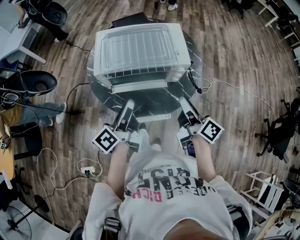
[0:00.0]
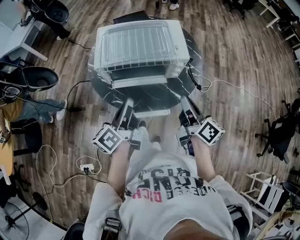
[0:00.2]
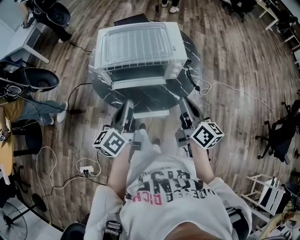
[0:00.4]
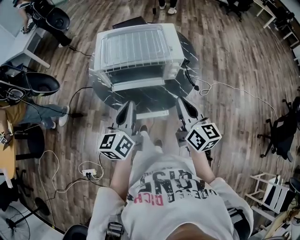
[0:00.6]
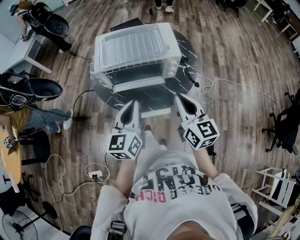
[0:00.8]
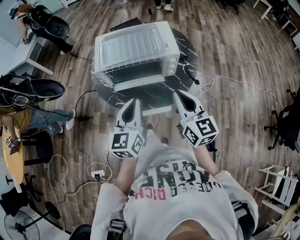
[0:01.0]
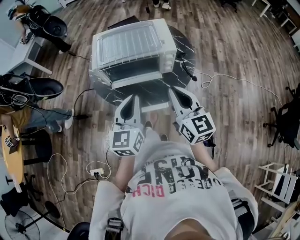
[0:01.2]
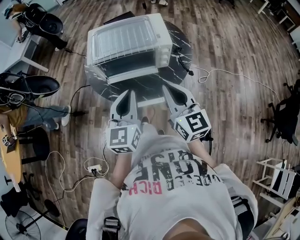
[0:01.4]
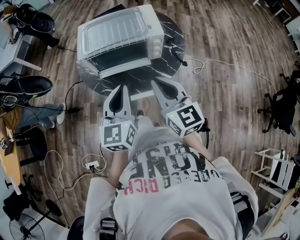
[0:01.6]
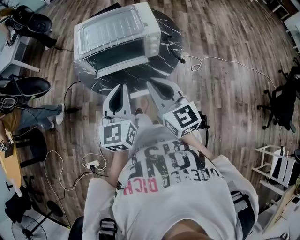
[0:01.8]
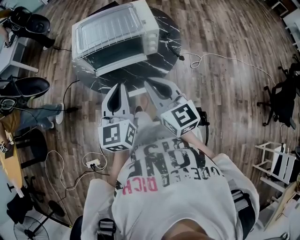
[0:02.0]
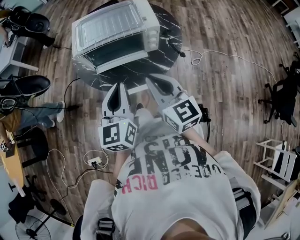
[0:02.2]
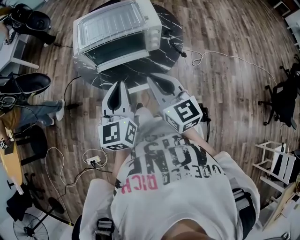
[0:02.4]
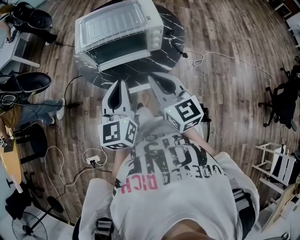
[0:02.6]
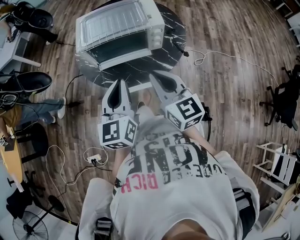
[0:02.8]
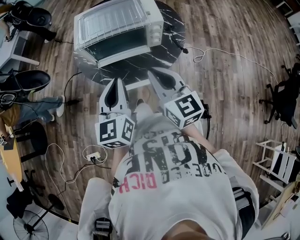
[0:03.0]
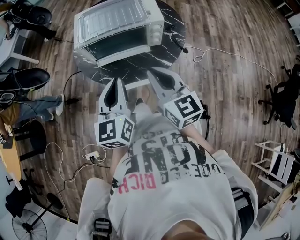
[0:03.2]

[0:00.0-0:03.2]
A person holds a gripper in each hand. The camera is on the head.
0:00.0 to 0:01.6: The right gripper travels backward and upward by approximately 10 cm, rotates around the line of its fingers by roughly 50 degrees, counterclockwise from behind, and closes up. The left gripper moves backward, upward and to the right, some 10 cm, rolls clockwise, seen from behind, by roughly 60 degrees, and closes its fingers.
0:01.6 to 0:03.2: The grippers stay close to where they were, moving slightly.

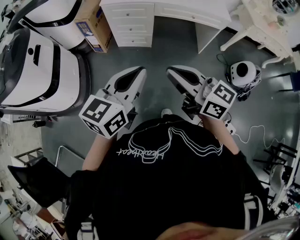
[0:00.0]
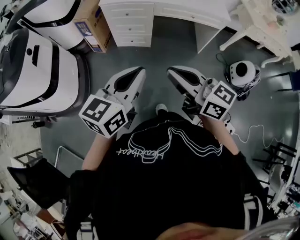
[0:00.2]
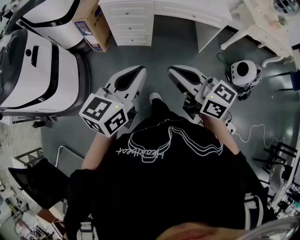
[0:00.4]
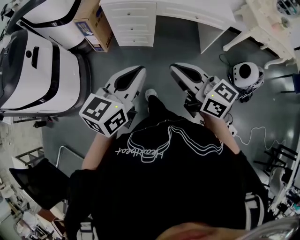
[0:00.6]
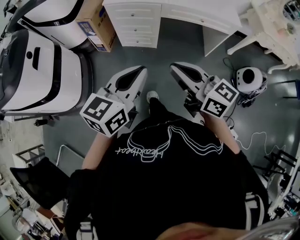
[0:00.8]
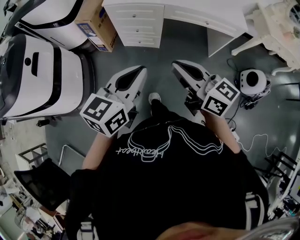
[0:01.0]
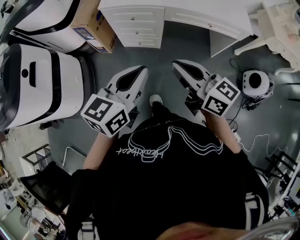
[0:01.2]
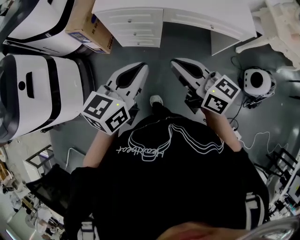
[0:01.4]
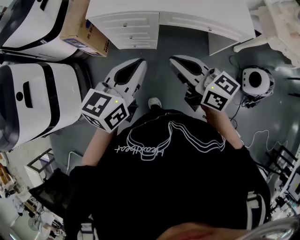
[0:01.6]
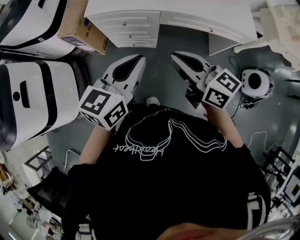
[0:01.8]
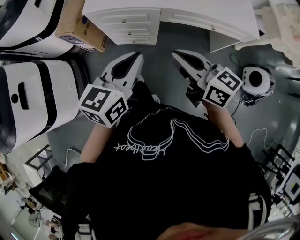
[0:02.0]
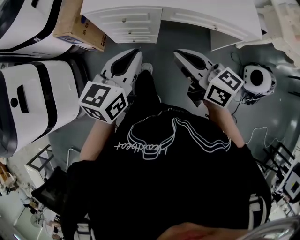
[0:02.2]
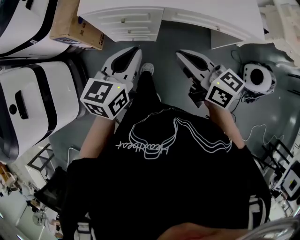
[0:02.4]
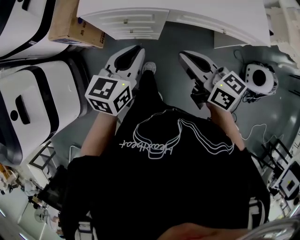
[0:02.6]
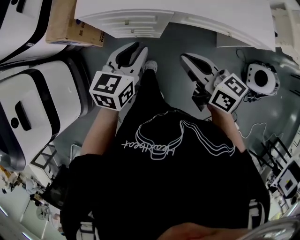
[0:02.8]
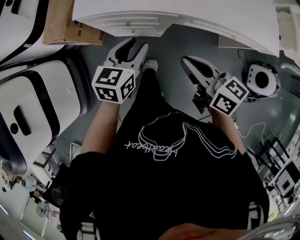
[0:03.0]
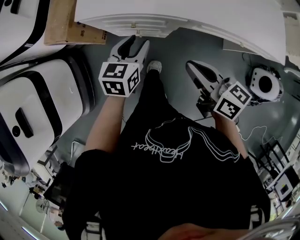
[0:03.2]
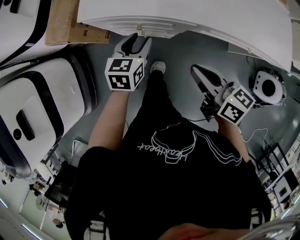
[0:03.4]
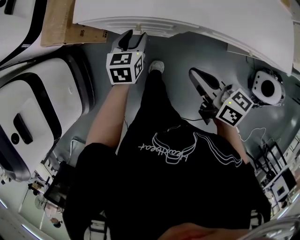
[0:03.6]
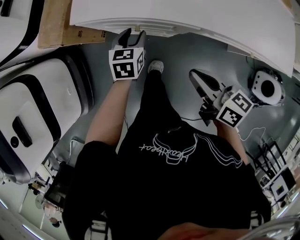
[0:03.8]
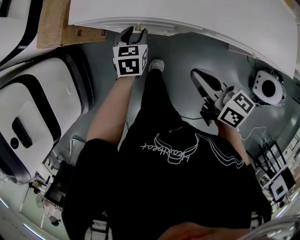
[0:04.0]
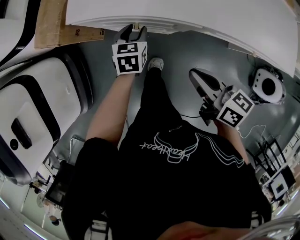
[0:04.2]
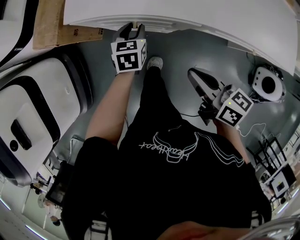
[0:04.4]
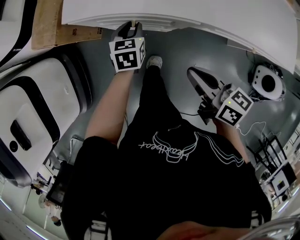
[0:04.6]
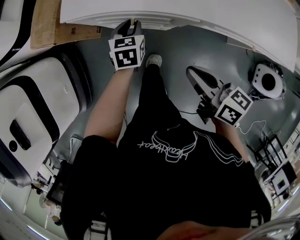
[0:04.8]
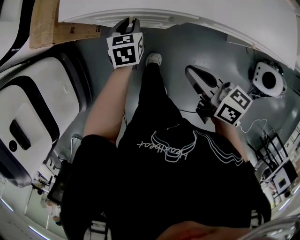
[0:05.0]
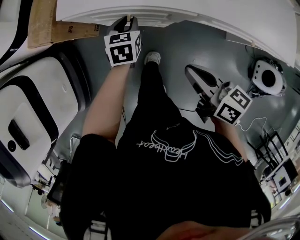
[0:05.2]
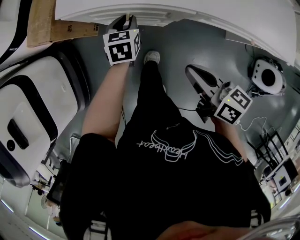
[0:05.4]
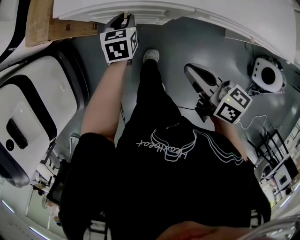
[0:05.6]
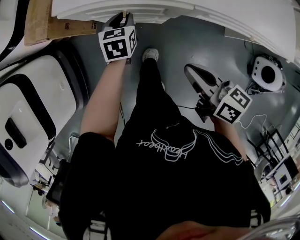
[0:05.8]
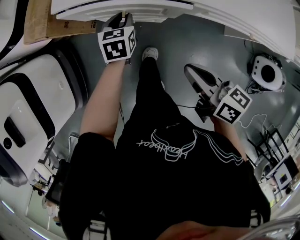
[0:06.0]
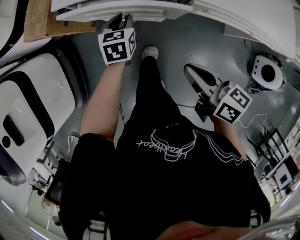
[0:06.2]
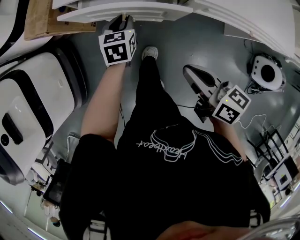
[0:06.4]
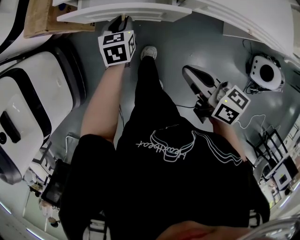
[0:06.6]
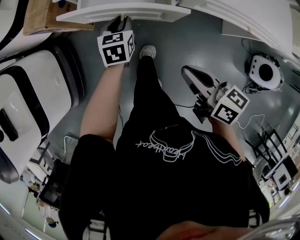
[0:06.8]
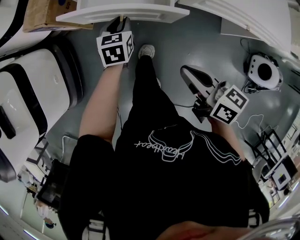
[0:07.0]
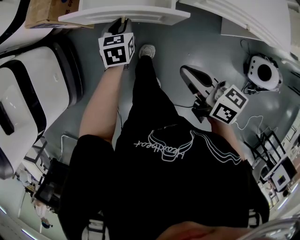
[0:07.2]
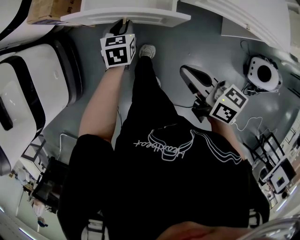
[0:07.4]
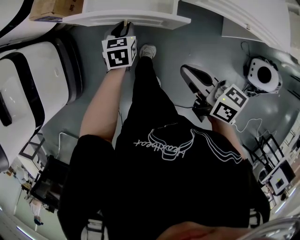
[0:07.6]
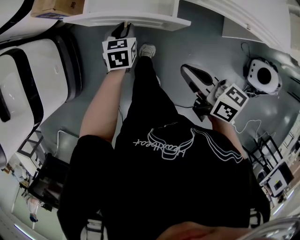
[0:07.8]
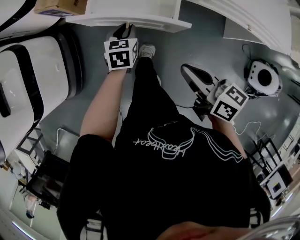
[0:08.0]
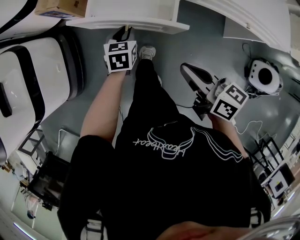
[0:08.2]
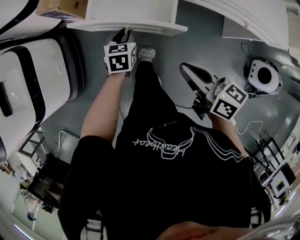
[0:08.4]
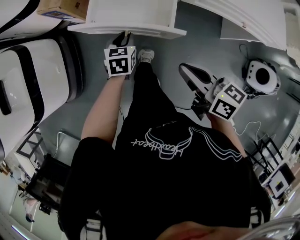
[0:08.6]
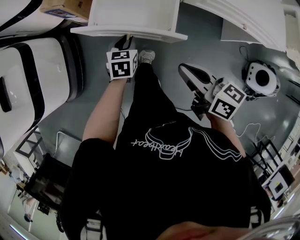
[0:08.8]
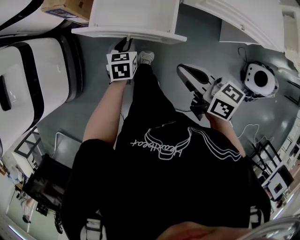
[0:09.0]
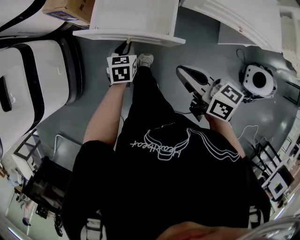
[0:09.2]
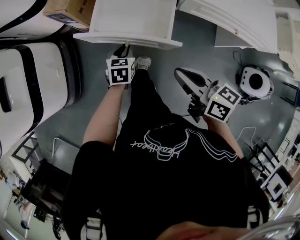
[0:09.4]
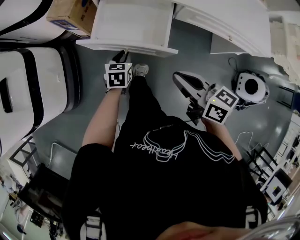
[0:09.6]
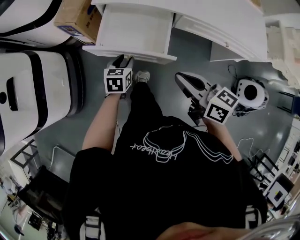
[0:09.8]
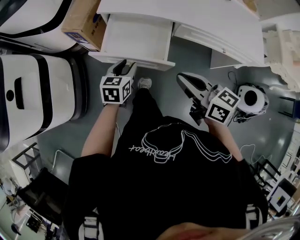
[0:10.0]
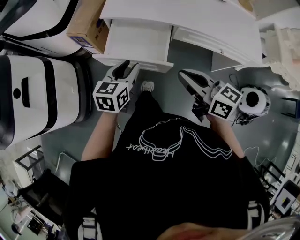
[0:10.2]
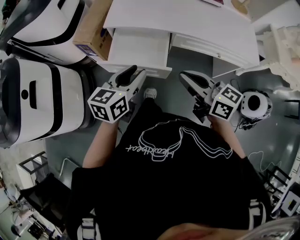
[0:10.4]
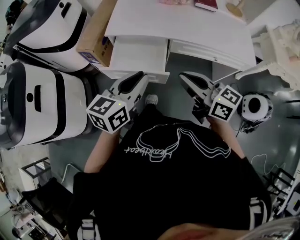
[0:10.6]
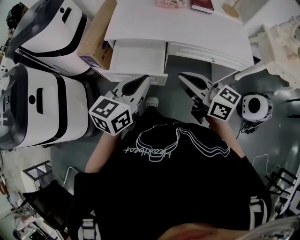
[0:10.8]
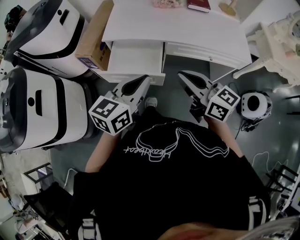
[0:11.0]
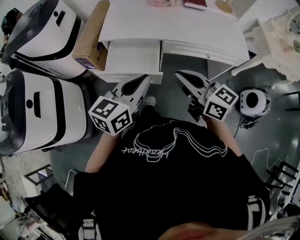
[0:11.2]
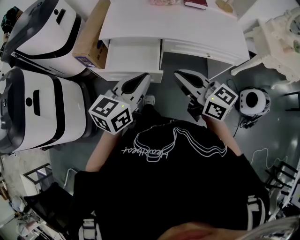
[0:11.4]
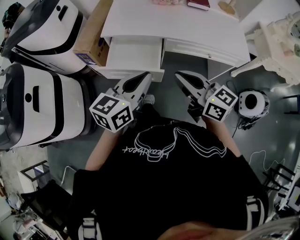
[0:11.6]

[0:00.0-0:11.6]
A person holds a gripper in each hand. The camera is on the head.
0:00.0 to 0:01.4: Both grippers move forward, about 25 cm.
0:01.4 to 0:02.8: The grippers both shift forward and downward by roughly 25 cm.
0:02.8 to 0:04.4: The right gripper moves downward, approximately 10 cm; the left gripper travels downward and forward by approximately 25 cm, and turns by roughly 30 degrees.
0:04.4 to 0:05.8: There are only small adjustments of the grippers.
0:05.8 to 0:07.2: Both grippers travel together backward, about 5 cm.
0:07.2 to 0:08.8: The left gripper is displaced backward by some 10 cm. Meanwhile the right gripper moves approximately 5 cm.
0:08.8 to 0:10.2: The left gripper goes about 20 cm upward, and changes its angle by roughly 20 degrees; the right gripper moves upward, approximately 15 cm.
0:10.2 to 0:11.6: The right gripper goes some 5 cm upward. Meanwhile the left gripper moves upward, backward and to the right, some 20 cm, swivels about 20 degrees, and closes its fingers.

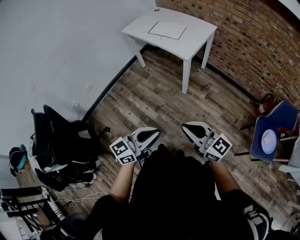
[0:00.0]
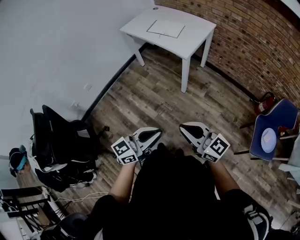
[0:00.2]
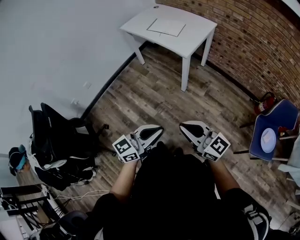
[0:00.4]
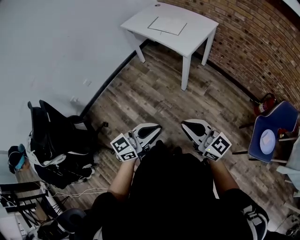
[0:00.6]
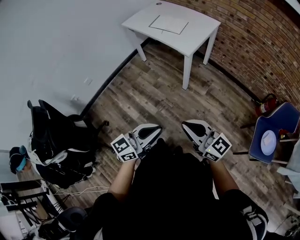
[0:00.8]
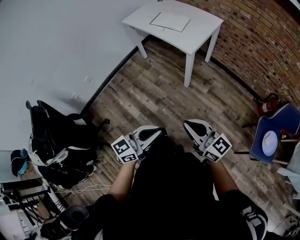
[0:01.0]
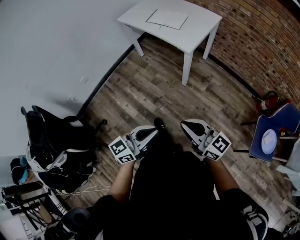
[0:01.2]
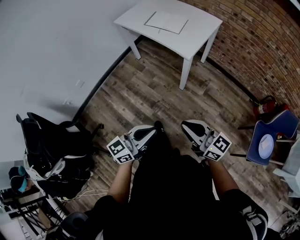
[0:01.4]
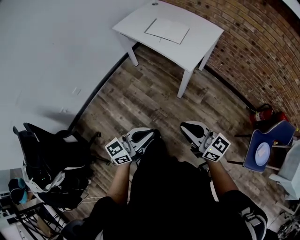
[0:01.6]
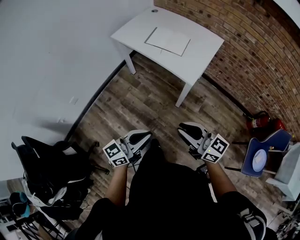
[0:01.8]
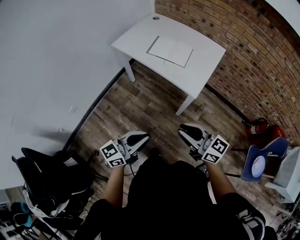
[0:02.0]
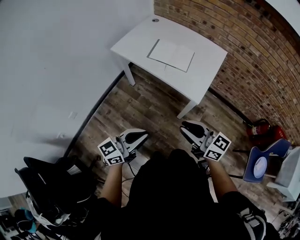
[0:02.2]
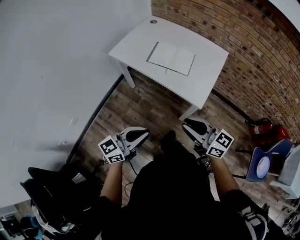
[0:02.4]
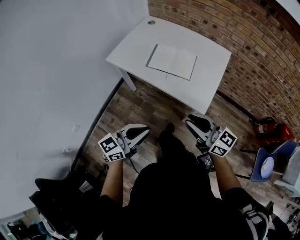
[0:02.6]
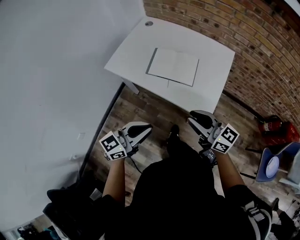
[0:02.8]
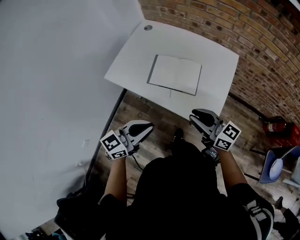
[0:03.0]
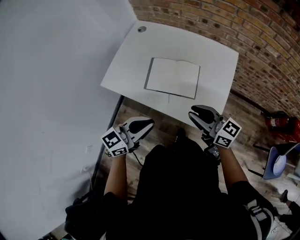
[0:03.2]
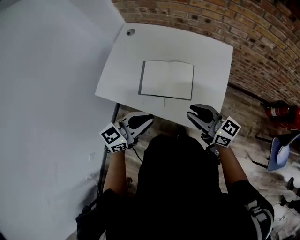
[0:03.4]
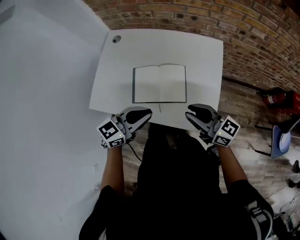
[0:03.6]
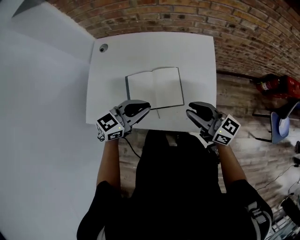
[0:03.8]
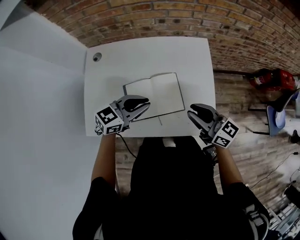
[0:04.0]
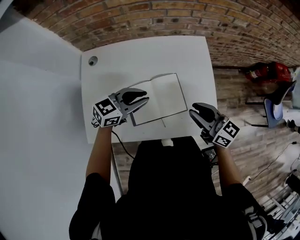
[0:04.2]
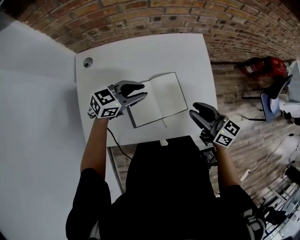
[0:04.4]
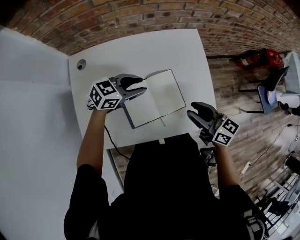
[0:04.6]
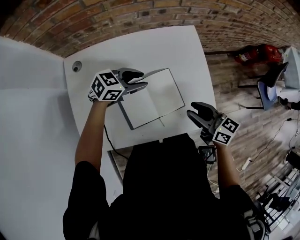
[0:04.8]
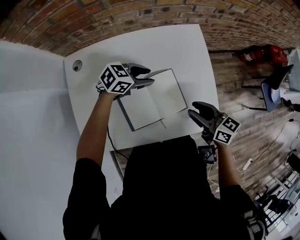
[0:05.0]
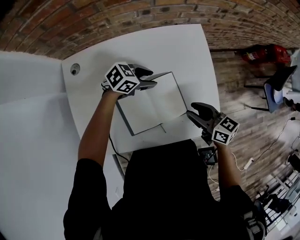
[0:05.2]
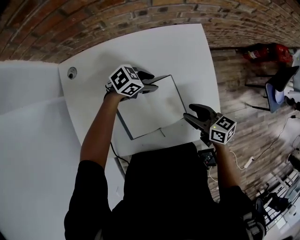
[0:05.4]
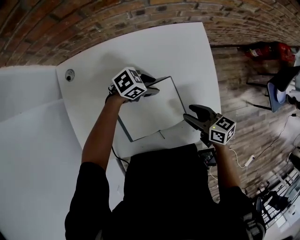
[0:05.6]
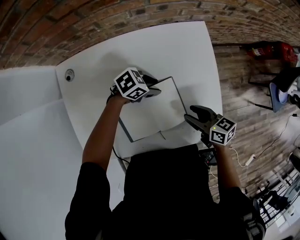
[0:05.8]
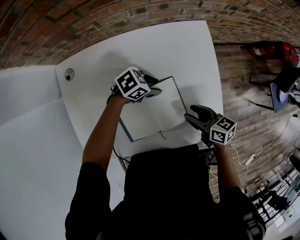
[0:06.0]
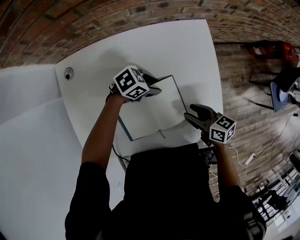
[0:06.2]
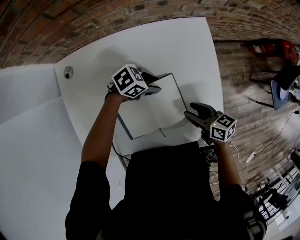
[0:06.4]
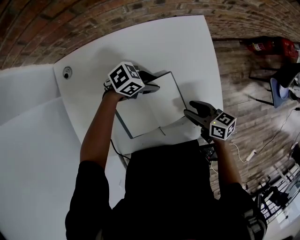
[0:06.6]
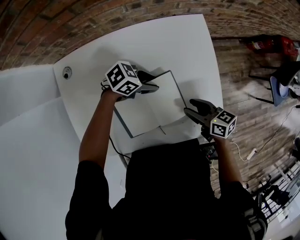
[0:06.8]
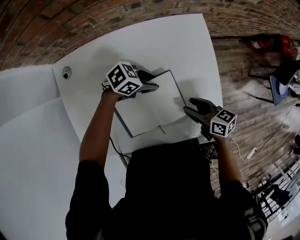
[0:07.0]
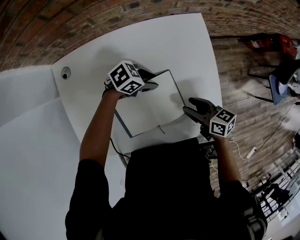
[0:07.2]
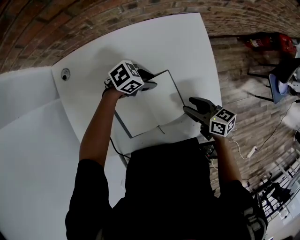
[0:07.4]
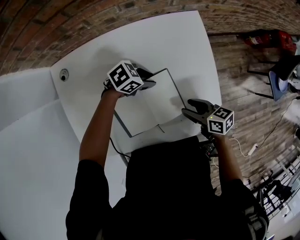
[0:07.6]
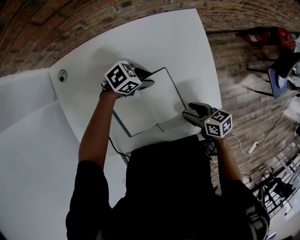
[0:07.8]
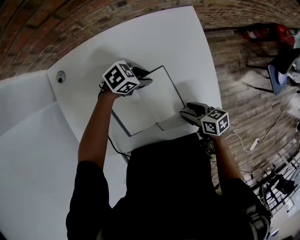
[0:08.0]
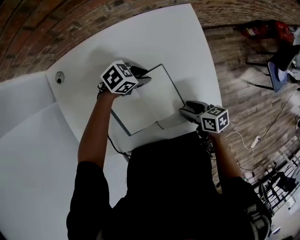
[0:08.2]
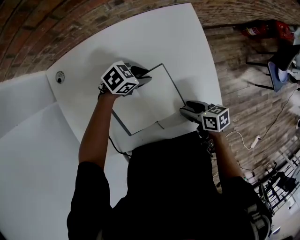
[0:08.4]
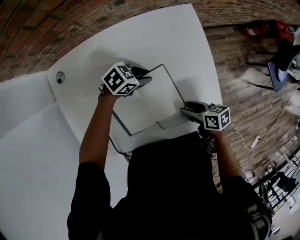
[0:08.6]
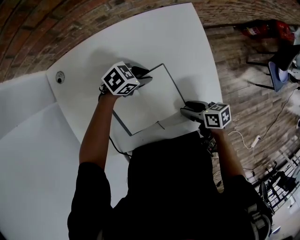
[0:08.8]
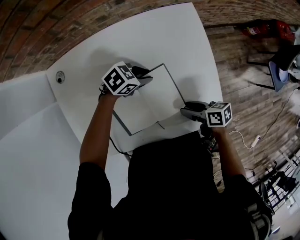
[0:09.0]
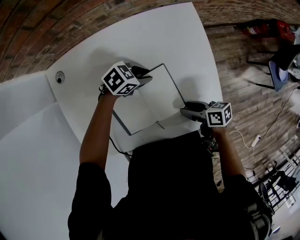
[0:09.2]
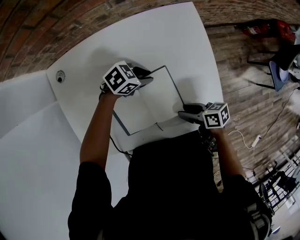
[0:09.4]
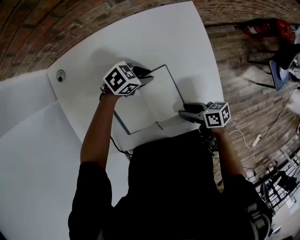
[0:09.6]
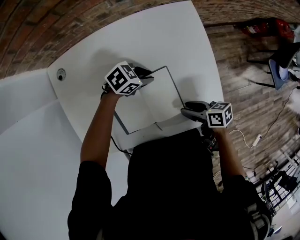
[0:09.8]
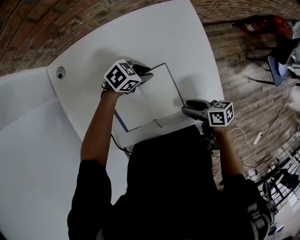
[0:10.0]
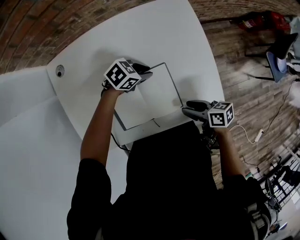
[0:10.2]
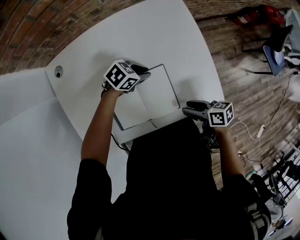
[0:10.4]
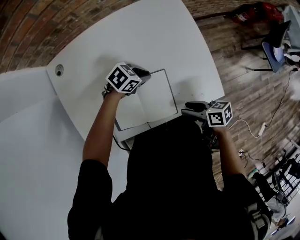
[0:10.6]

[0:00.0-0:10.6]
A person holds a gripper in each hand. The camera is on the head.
0:00.0 to 0:01.6: Both grippers travel together forward, some 20 cm.
0:01.6 to 0:03.0: Both grippers are carried forward, about 50 cm.
0:03.0 to 0:04.6: The left gripper ends up roughly 40 cm from where it was, changes its angle by about 60 degrees, and opens. Meanwhile the right gripper ends up roughly 20 cm from where it was, and changes its angle by approximately 40 degrees.
0:04.6 to 0:06.0: Both grippers move downward, about 15 cm. The left gripper swivels approximately 30 degrees. The right gripper swivels some 20 degrees.
0:06.0 to 0:07.6: The grippers move only a little.
0:07.6 to 0:09.0: The grippers stay close to where they were, moving slightly.
0:09.0 to 0:10.6: The right gripper moves approximately 10 cm, while the left gripper ends up about 10 cm from where it was.
